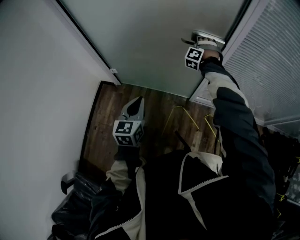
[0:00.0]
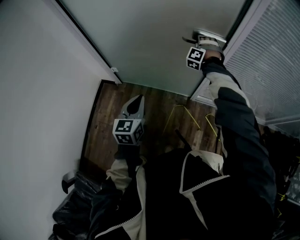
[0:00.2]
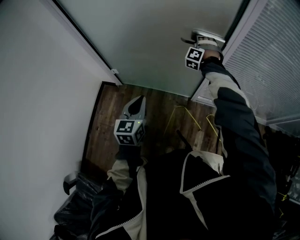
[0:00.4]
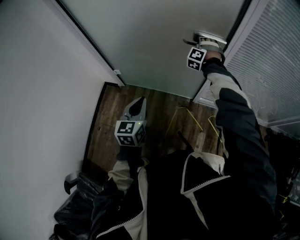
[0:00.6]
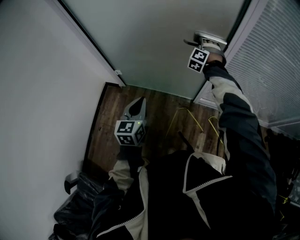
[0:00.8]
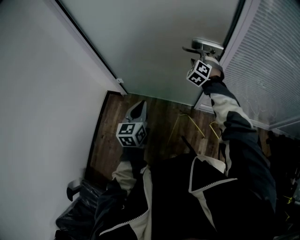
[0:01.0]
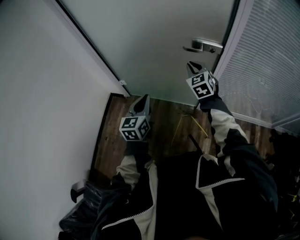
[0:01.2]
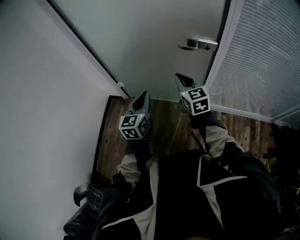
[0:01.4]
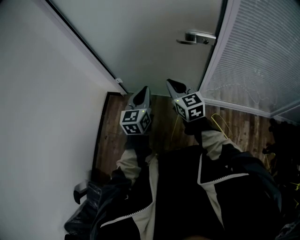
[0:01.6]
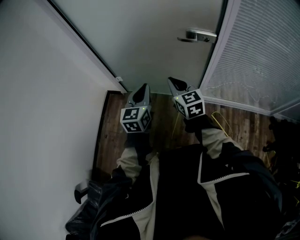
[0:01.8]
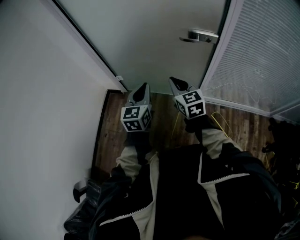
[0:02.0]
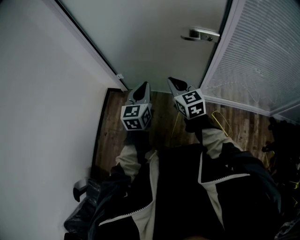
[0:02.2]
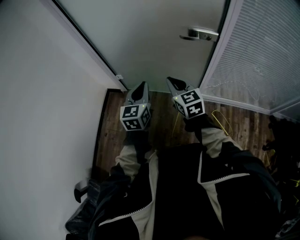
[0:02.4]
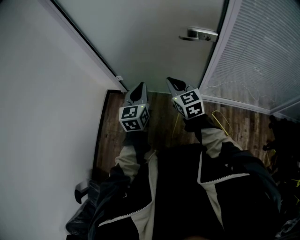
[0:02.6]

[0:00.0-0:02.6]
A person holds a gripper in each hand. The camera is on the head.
0:00.0 to 0:01.2: The right gripper shifts some 15 cm backward, twists roughly 60 degrees clockwise, seen from behind, and opens, then closes again.
0:01.2 to 0:02.6: The right gripper travels backward and to the left by some 20 cm, and rotates about 30 degrees.

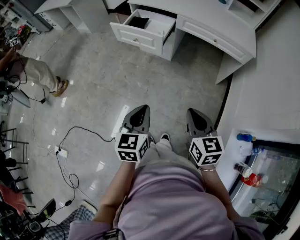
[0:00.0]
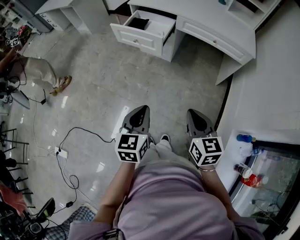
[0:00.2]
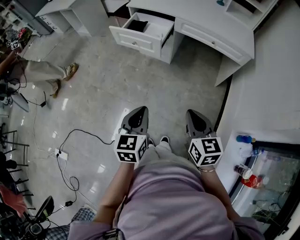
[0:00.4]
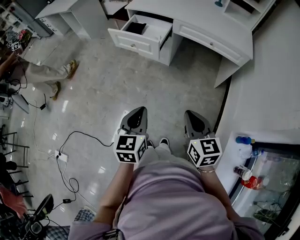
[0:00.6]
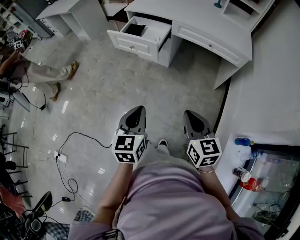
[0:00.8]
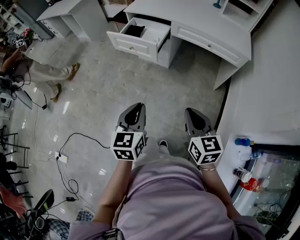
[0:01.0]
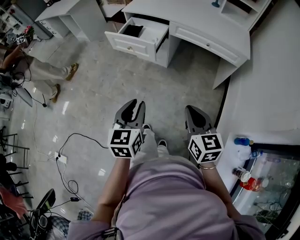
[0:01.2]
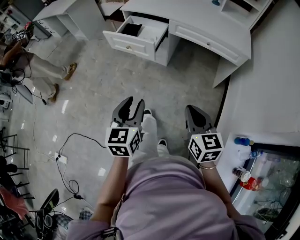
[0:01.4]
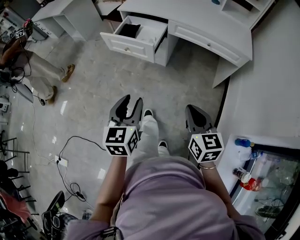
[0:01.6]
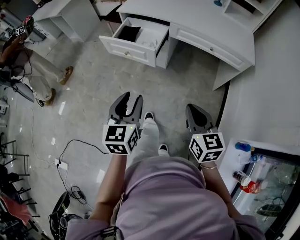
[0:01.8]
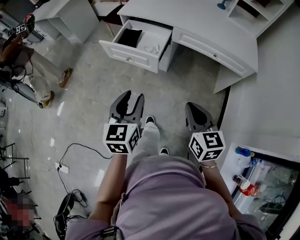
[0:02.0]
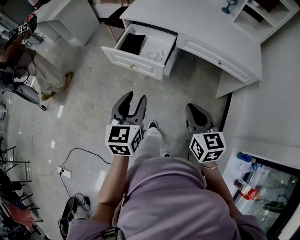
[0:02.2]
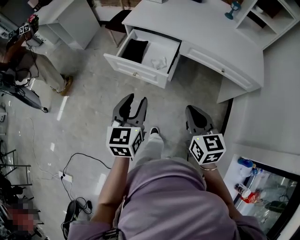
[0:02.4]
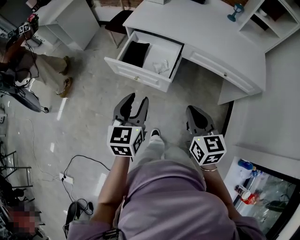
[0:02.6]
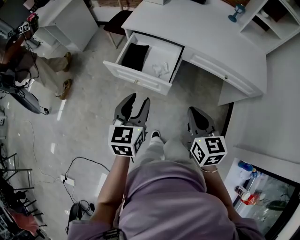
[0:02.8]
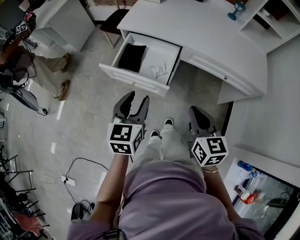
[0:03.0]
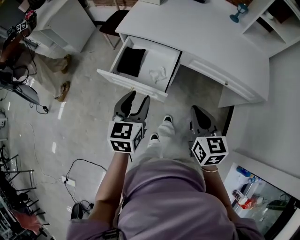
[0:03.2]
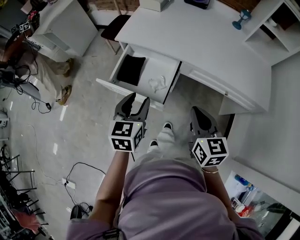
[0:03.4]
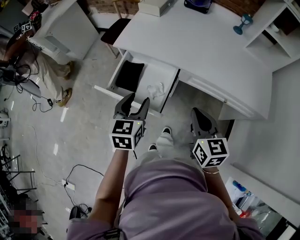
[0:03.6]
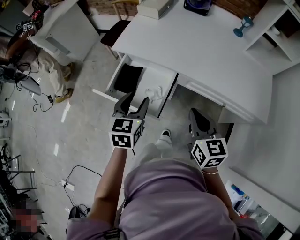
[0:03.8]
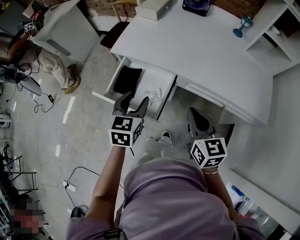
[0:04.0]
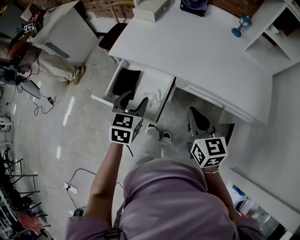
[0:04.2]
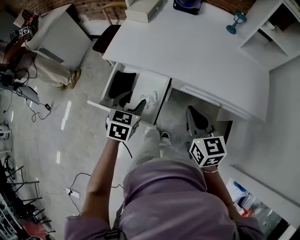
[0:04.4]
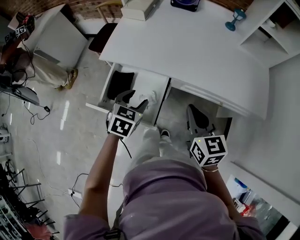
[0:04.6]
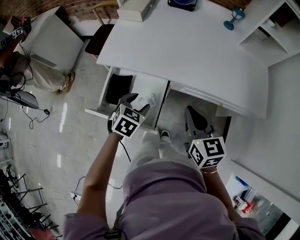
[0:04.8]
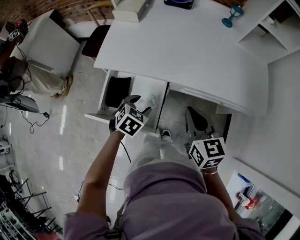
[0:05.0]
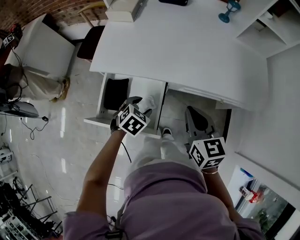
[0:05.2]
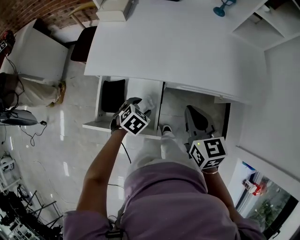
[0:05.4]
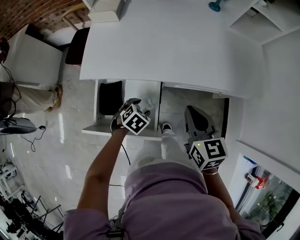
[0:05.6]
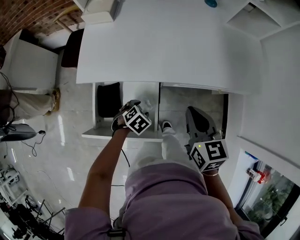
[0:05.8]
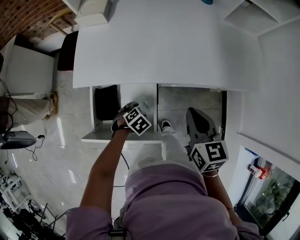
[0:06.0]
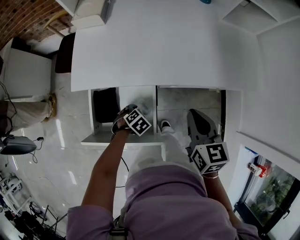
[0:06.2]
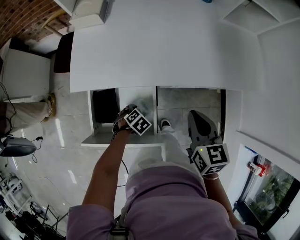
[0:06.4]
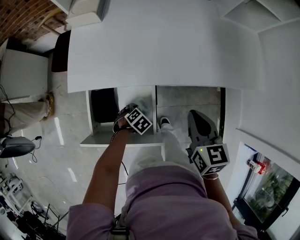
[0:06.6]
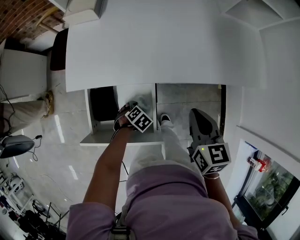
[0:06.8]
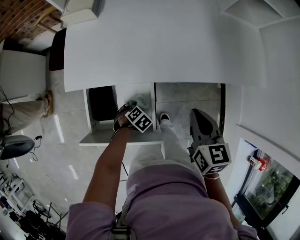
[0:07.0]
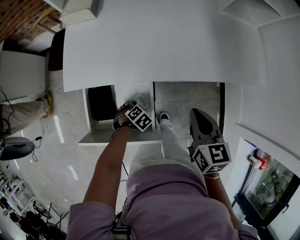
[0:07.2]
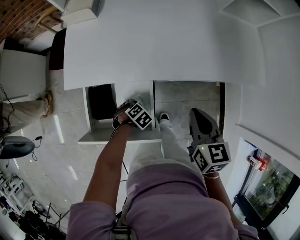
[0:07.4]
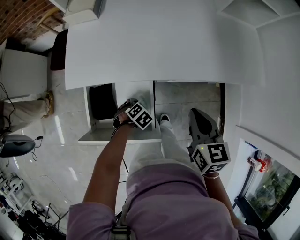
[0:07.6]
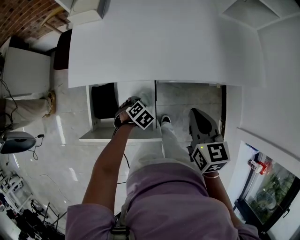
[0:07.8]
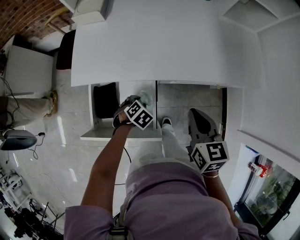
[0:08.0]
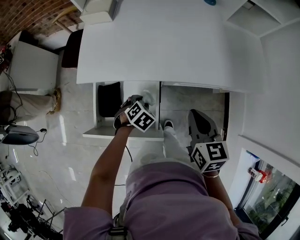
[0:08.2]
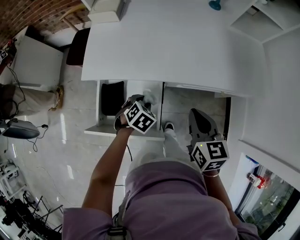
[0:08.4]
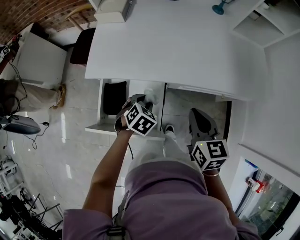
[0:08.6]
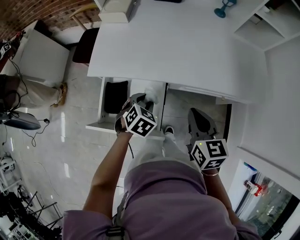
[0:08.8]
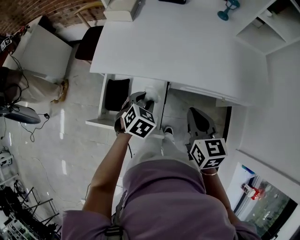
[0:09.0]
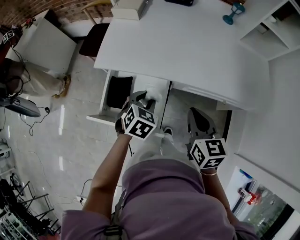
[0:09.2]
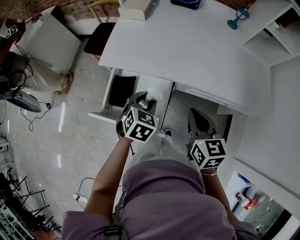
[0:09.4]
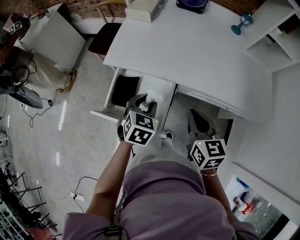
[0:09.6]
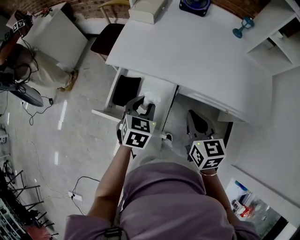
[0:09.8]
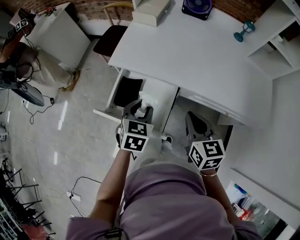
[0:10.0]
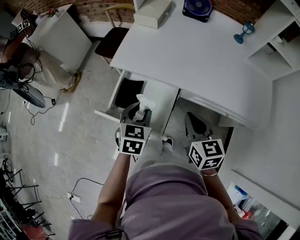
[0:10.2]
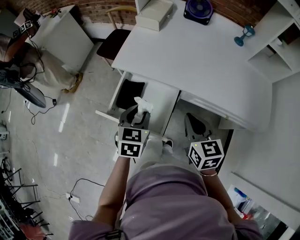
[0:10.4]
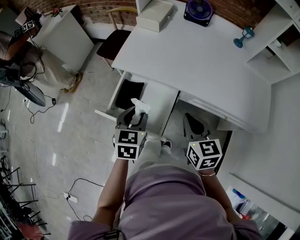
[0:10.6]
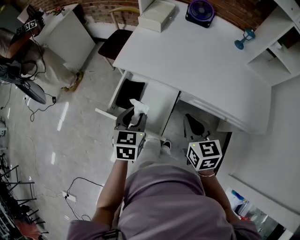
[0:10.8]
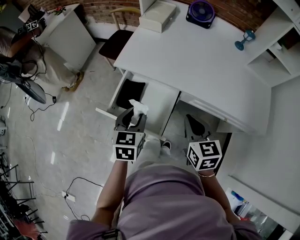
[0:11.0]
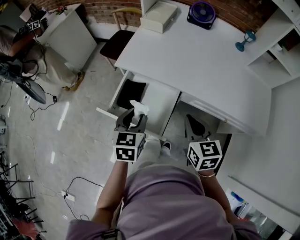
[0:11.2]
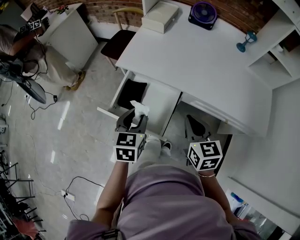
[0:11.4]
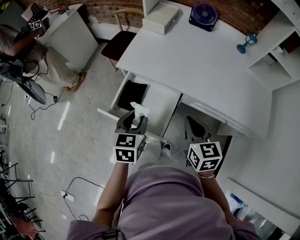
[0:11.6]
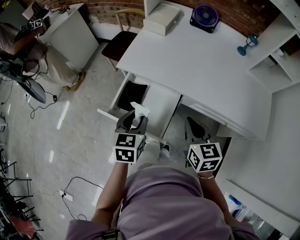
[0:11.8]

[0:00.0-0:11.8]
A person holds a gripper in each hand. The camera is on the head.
0:00.0 to 0:01.4: The left gripper changes place by roughly 5 cm, and opens. Meanwhile the right gripper changes place by some 5 cm.
0:01.4 to 0:03.0: The grippers both shift forward by some 30 cm.
0:03.0 to 0:04.4: The grippers both shift forward by approximately 20 cm. The left gripper rotates roughly 20 degrees.
0:04.4 to 0:06.0: The left gripper is displaced downward by approximately 25 cm, and angles its fingers downward, by about 30 degrees; the right gripper ends up some 5 cm from where it was, and changes its angle by some 20 degrees.
0:06.0 to 0:07.4: The left gripper moves downward, roughly 5 cm, and closes its fingers.
0:07.4 to 0:08.8: The left gripper travels upward by approximately 20 cm, and swivels approximately 30 degrees.
0:08.8 to 0:10.4: The right gripper goes approximately 5 cm to the left; the left gripper moves upward, to the left and backward, about 15 cm, and changes its angle by about 40 degrees.
0:10.4 to 0:11.8: The grippers make only small movements.

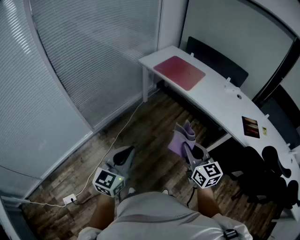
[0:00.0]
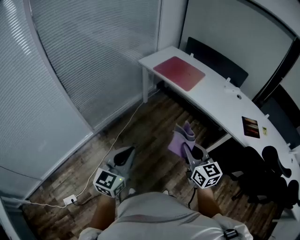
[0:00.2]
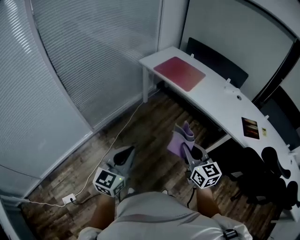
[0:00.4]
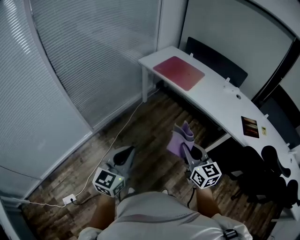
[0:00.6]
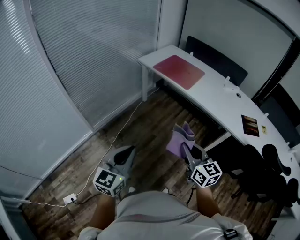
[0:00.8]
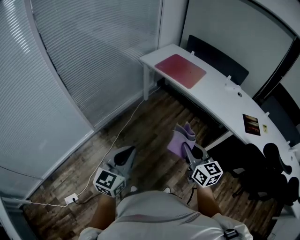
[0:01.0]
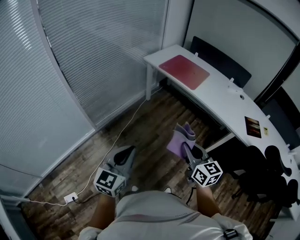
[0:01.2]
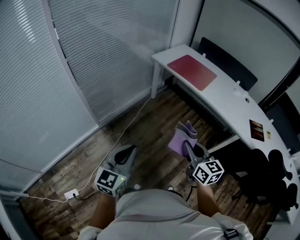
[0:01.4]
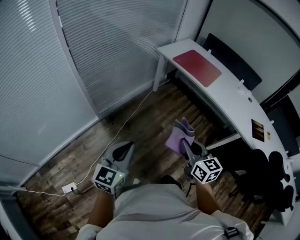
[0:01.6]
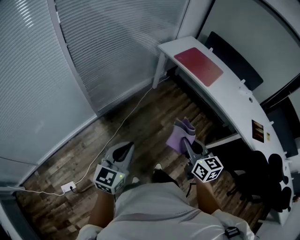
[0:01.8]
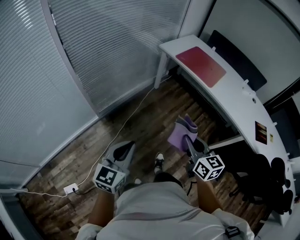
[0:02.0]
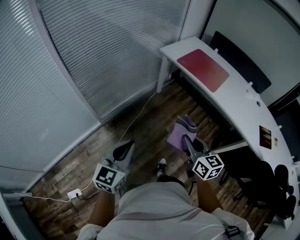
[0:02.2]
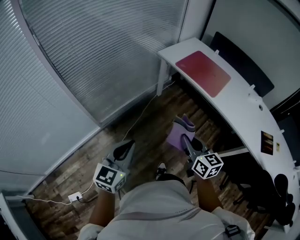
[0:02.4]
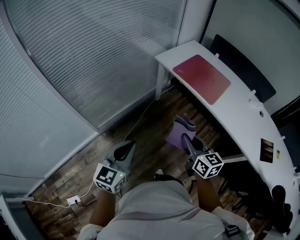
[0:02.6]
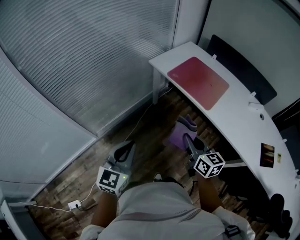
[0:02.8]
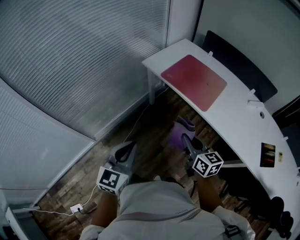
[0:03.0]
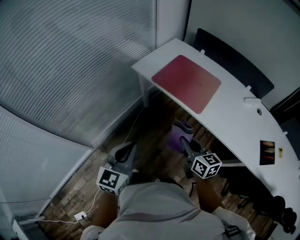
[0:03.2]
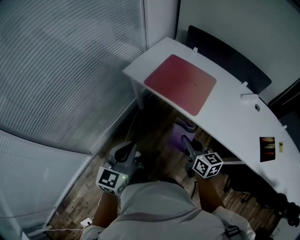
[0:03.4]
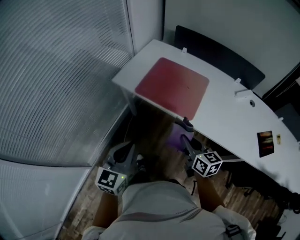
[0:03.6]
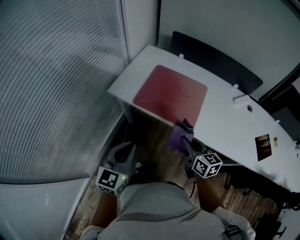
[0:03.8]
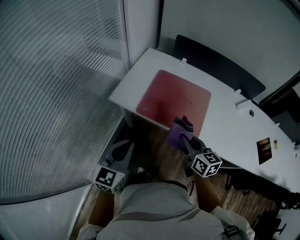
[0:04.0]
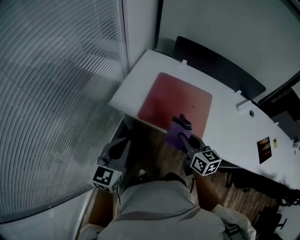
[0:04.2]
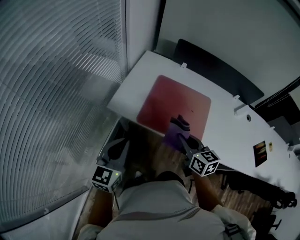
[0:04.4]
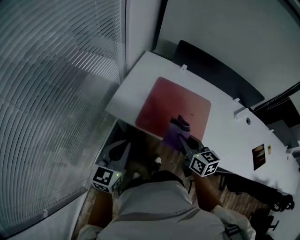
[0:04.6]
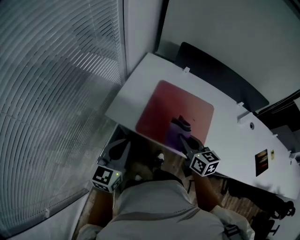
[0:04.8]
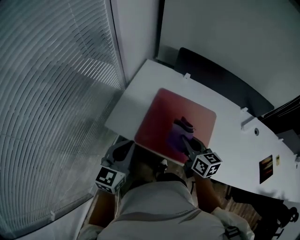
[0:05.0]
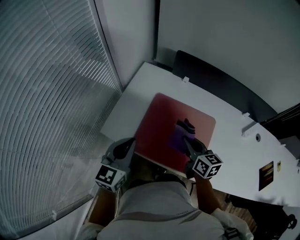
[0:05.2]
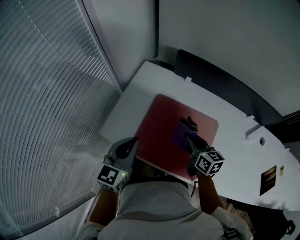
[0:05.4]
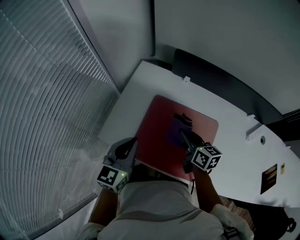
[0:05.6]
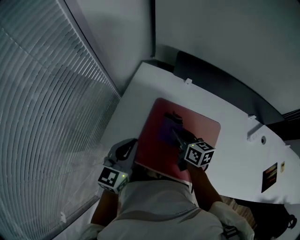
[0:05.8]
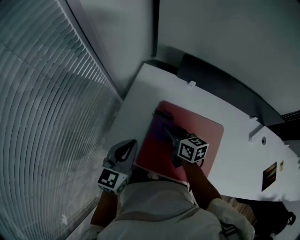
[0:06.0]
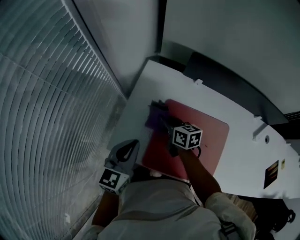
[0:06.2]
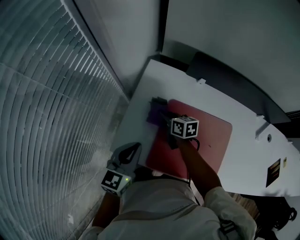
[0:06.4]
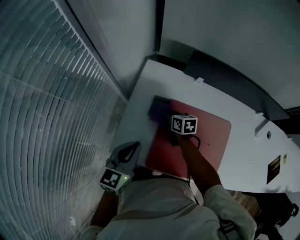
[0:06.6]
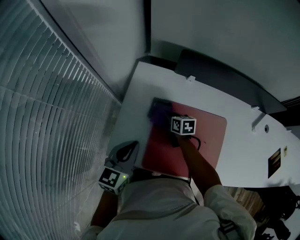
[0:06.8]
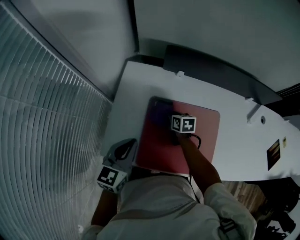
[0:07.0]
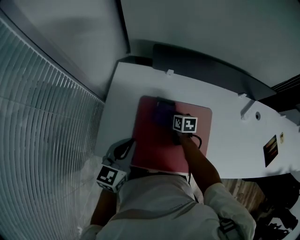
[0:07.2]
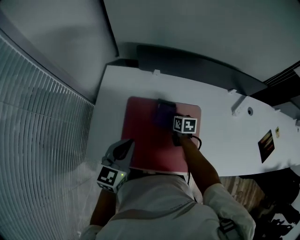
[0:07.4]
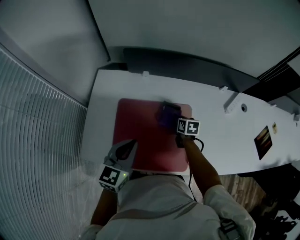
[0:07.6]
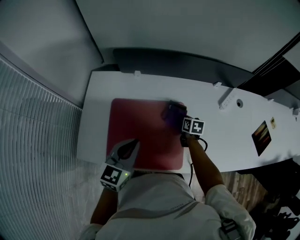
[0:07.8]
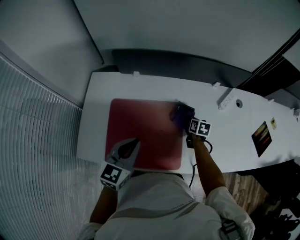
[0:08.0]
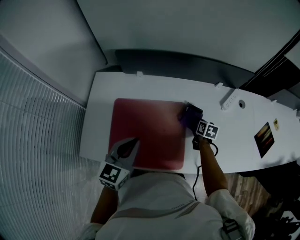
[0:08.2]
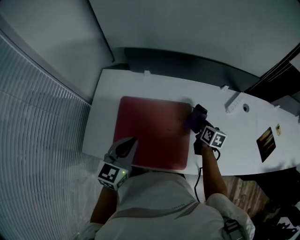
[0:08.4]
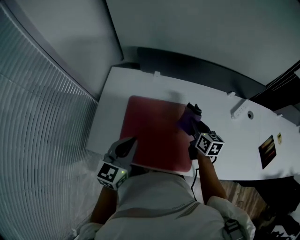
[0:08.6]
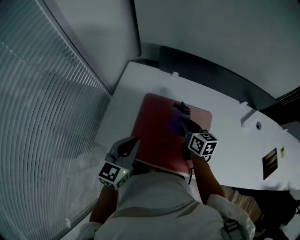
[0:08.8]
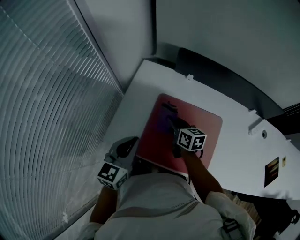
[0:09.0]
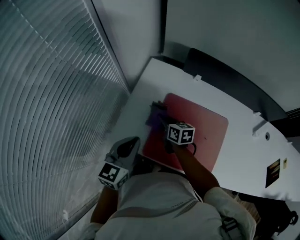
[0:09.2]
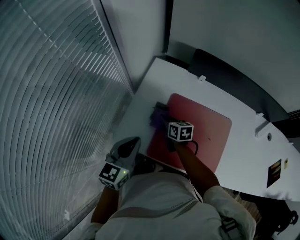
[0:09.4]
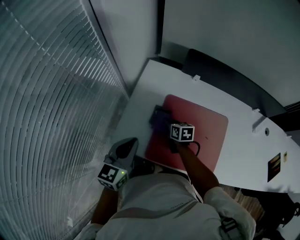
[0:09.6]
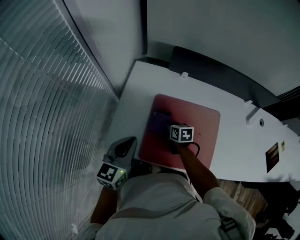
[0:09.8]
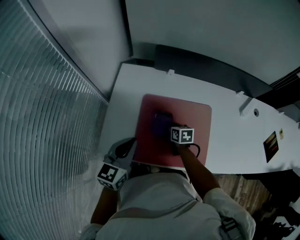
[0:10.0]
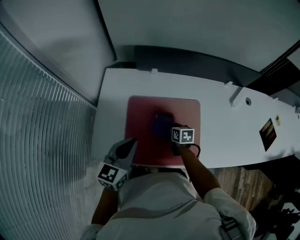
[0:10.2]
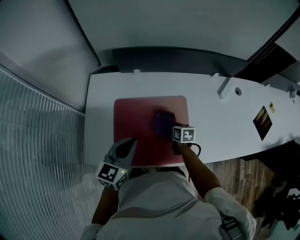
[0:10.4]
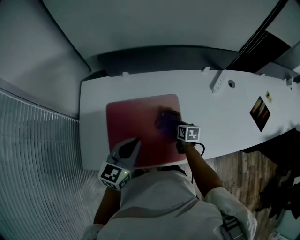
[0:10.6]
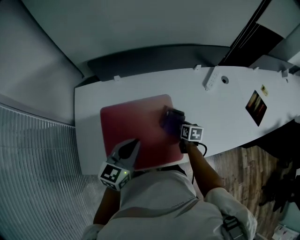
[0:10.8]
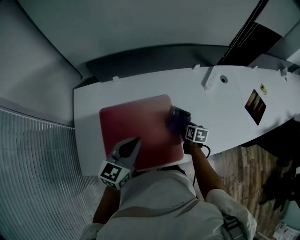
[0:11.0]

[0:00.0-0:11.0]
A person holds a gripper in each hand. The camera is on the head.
0:00.0 to 0:01.6: The grippers both shift to the left by some 15 cm.
0:01.6 to 0:03.2: The two grippers travel together, forward and to the right, some 50 cm.
0:03.2 to 0:04.8: The pair of grippers is taken forward, about 40 cm.
0:04.8 to 0:06.2: The two grippers go about 30 cm forward.
0:06.2 to 0:07.8: The left gripper ends up approximately 25 cm from where it was, and rotates roughly 20 degrees. Meanwhile the right gripper ends up approximately 40 cm from where it was, and turns by roughly 40 degrees.
0:07.8 to 0:09.4: The right gripper goes upward and returns, some 15 cm each way, and rotates about 30 degrees, while the left gripper changes place by roughly 25 cm, and rotates approximately 20 degrees.
0:09.4 to 0:11.0: The left gripper changes place by approximately 30 cm, and rotates approximately 30 degrees. Meanwhile the right gripper shifts by approximately 50 cm, and swivels roughly 50 degrees.
